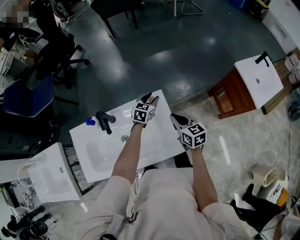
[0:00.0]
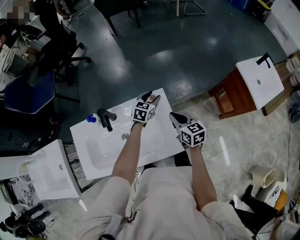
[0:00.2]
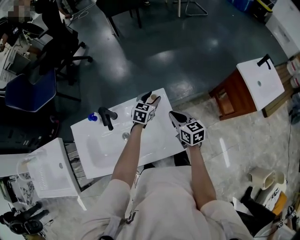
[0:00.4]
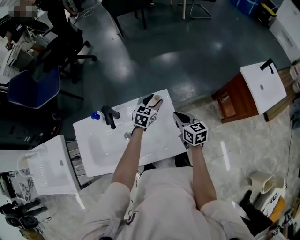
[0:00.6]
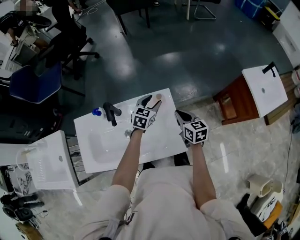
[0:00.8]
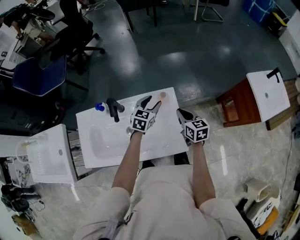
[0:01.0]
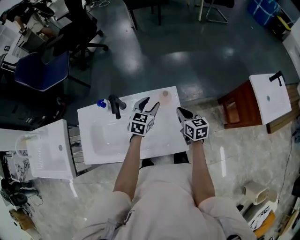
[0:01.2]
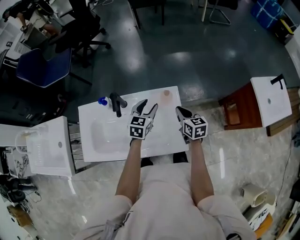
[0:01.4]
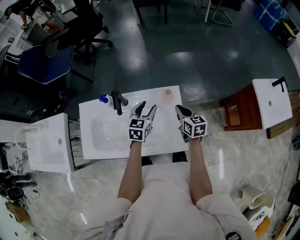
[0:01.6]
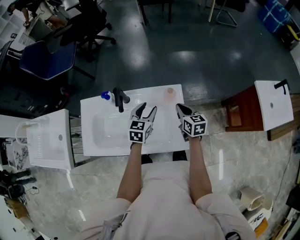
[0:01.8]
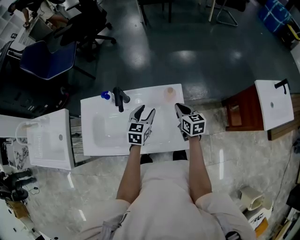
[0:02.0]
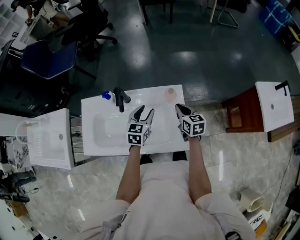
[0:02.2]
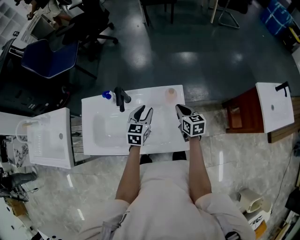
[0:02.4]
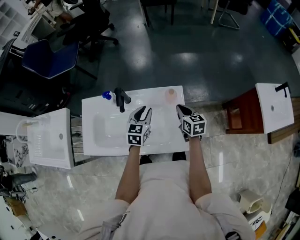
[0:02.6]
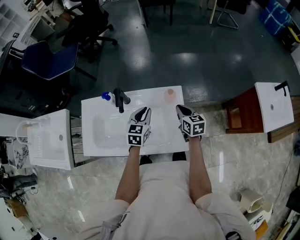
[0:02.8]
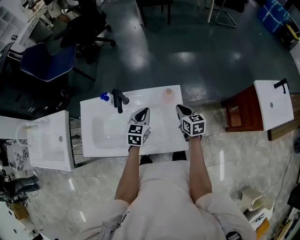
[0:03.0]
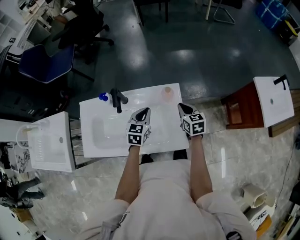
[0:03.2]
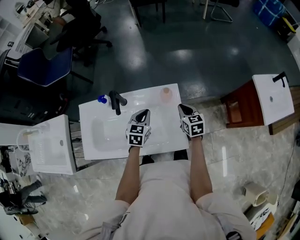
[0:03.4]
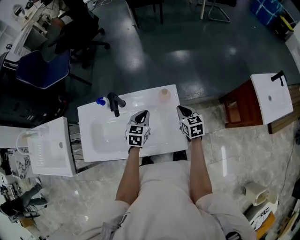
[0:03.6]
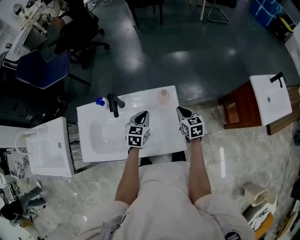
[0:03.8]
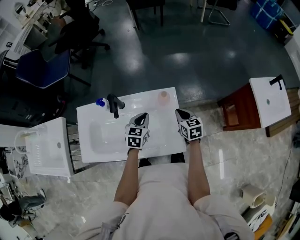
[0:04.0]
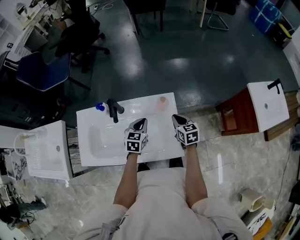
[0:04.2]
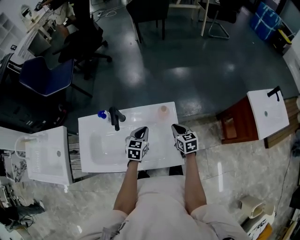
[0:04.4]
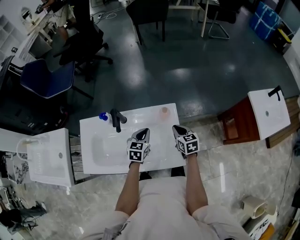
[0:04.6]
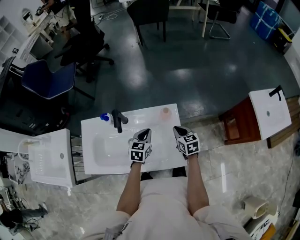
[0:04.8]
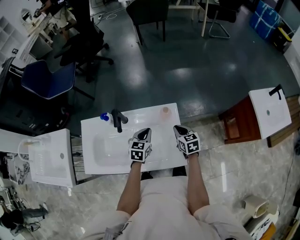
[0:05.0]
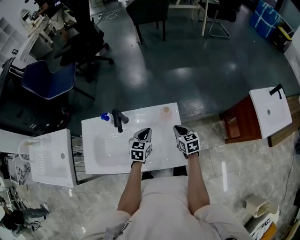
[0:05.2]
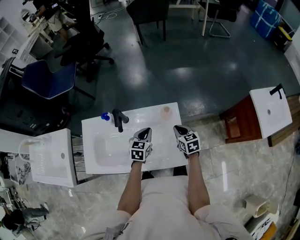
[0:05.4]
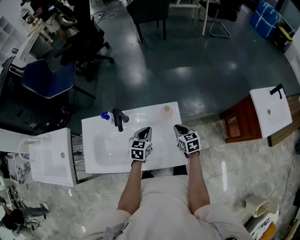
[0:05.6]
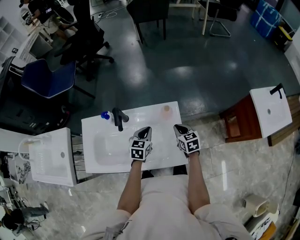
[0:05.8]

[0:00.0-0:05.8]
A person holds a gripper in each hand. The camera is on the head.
0:00.0 to 0:01.4: The left gripper is displaced to the left, backward and upward by about 15 cm.
0:01.4 to 0:02.8: The left gripper changes place by about 5 cm, and closes its fingers.
0:02.8 to 0:04.4: There are only small adjustments of the grippers.
0:04.4 to 0:05.8: Both grippers stay about where they are.

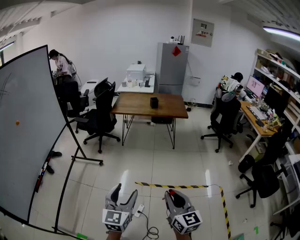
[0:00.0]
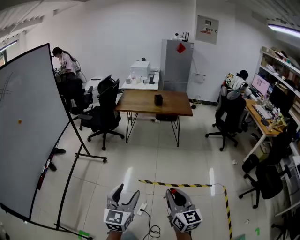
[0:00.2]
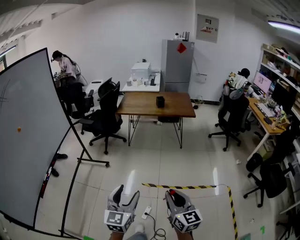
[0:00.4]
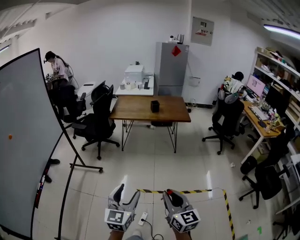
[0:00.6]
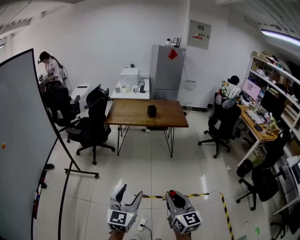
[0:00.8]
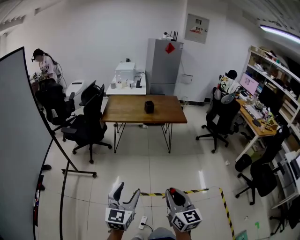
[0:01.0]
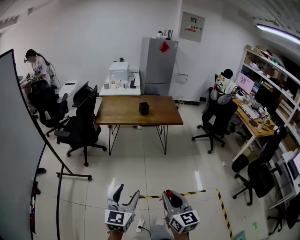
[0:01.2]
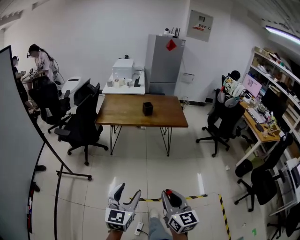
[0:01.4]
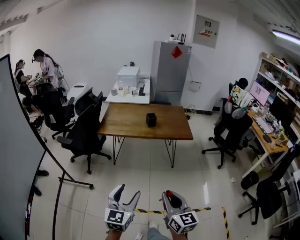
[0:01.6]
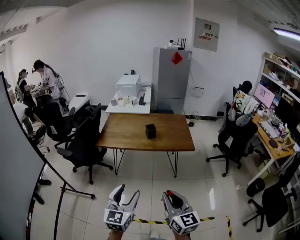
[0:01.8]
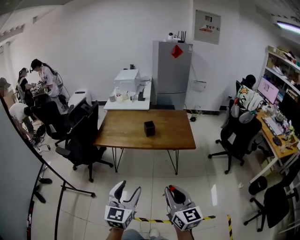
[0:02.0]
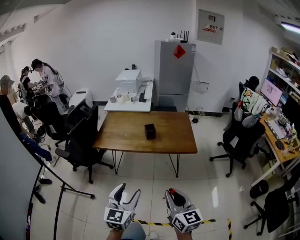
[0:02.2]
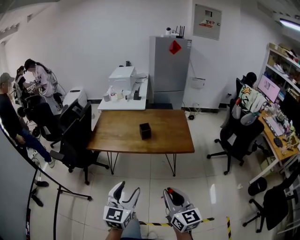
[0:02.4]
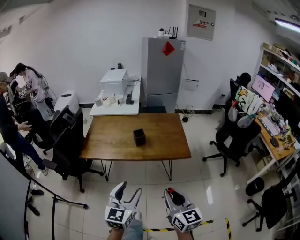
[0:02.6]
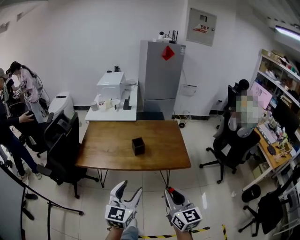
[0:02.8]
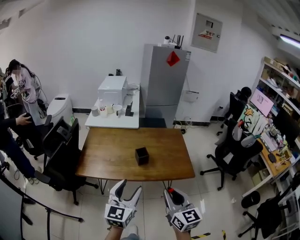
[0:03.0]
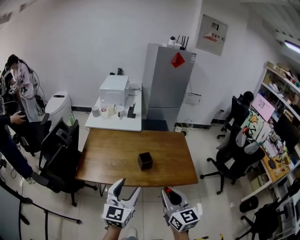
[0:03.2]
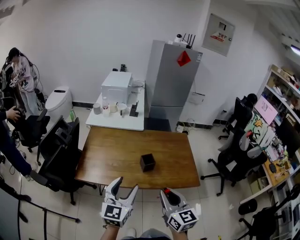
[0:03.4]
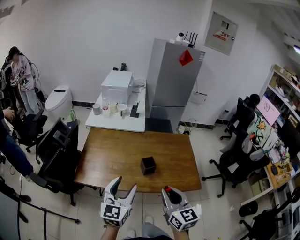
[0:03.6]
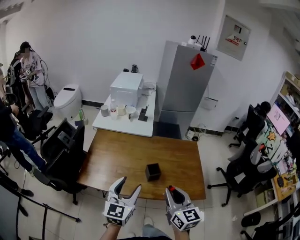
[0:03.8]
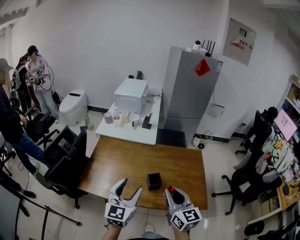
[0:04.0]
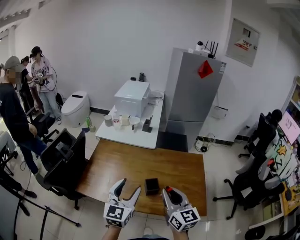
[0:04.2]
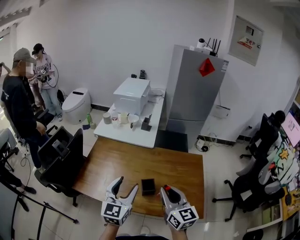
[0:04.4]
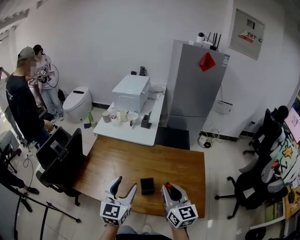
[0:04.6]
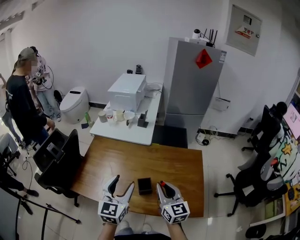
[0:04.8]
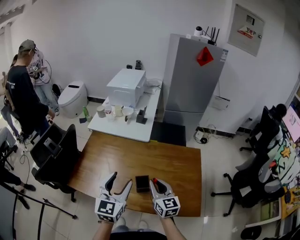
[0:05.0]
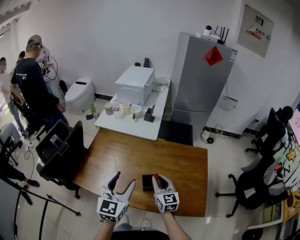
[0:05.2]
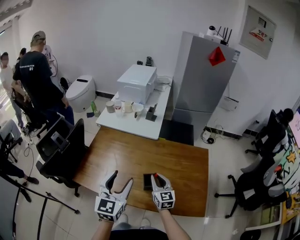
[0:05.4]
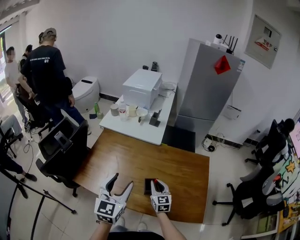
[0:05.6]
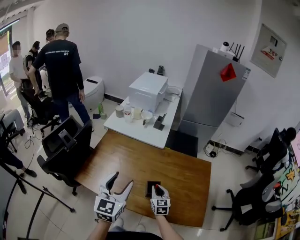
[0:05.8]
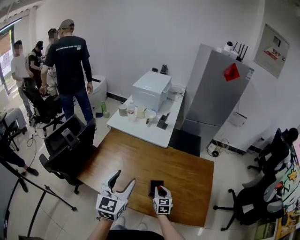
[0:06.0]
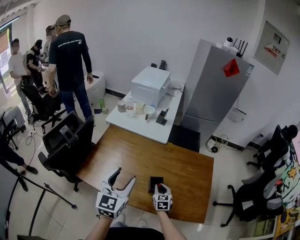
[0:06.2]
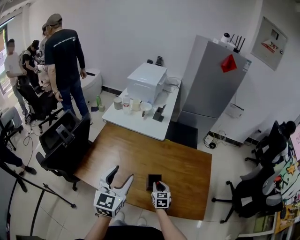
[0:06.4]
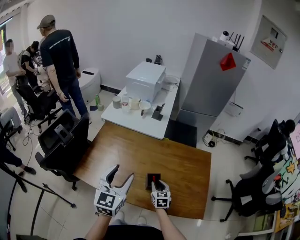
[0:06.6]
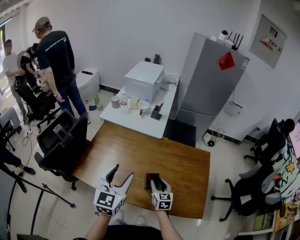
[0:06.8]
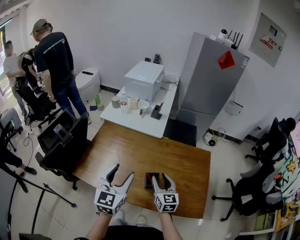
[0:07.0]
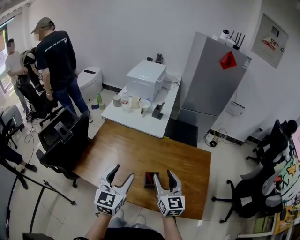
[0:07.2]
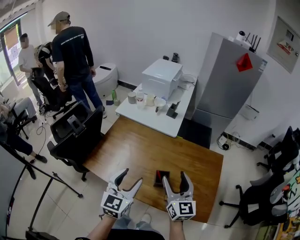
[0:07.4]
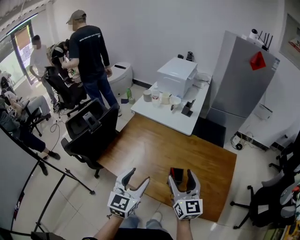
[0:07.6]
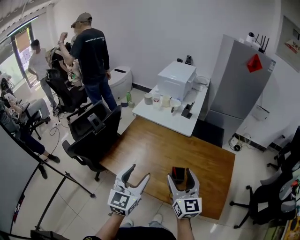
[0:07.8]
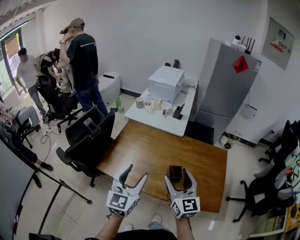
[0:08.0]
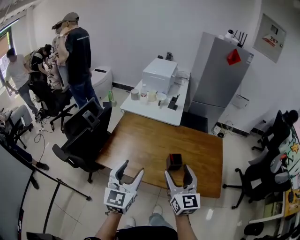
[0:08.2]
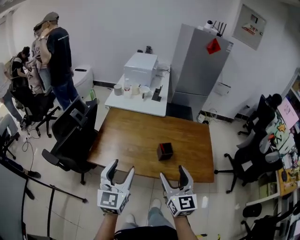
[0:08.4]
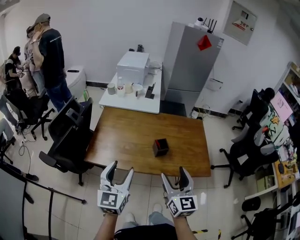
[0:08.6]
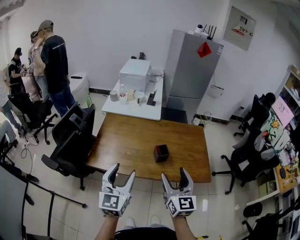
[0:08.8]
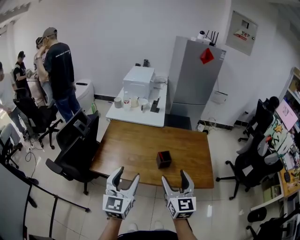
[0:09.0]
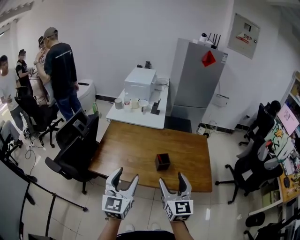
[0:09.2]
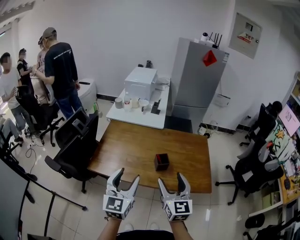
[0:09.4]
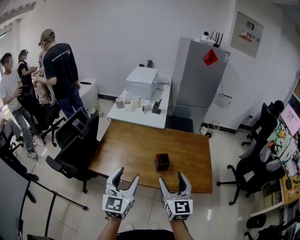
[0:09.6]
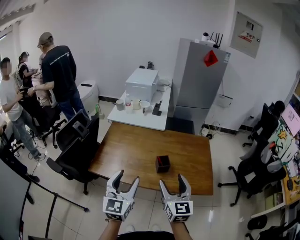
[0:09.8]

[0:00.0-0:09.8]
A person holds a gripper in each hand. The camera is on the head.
0:00.0 to 0:01.4: The grippers both shift forward by about 30 cm.
0:01.4 to 0:02.8: The pair of grippers is taken forward, approximately 50 cm.
0:02.8 to 0:04.2: The grippers both shift forward by some 35 cm.
0:04.2 to 0:05.6: The right gripper heads downward and forward, covering about 25 cm.
0:05.6 to 0:07.0: The right gripper moves upward, approximately 5 cm, and opens up.
0:07.0 to 0:08.4: The right gripper travels backward, upward and to the left by some 25 cm, and opens its fingers, while the left gripper shifts roughly 20 cm backward and to the left.
0:08.4 to 0:09.8: Both grippers travel together to the right, approximately 5 cm.

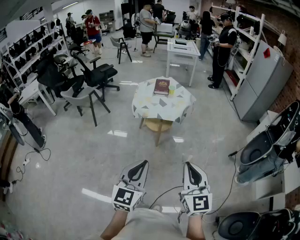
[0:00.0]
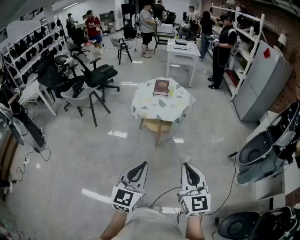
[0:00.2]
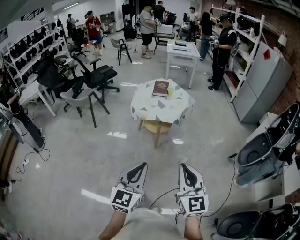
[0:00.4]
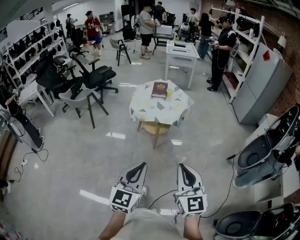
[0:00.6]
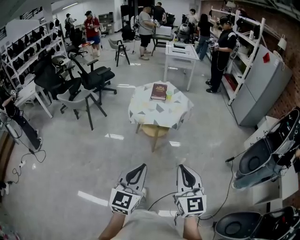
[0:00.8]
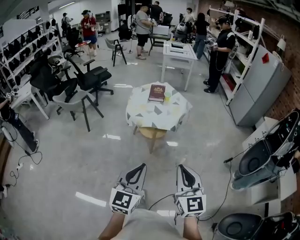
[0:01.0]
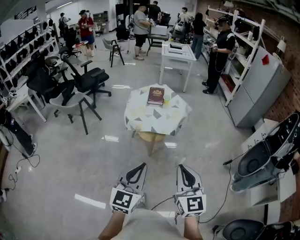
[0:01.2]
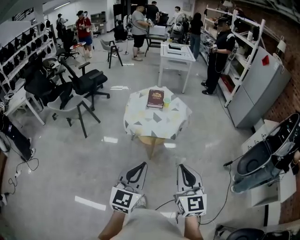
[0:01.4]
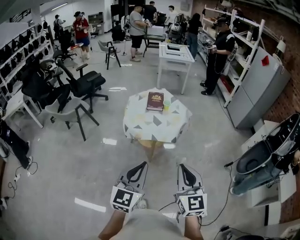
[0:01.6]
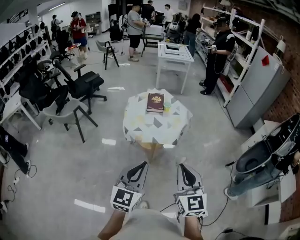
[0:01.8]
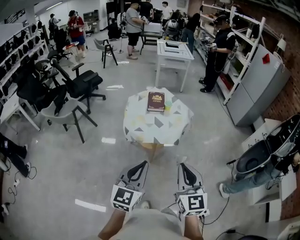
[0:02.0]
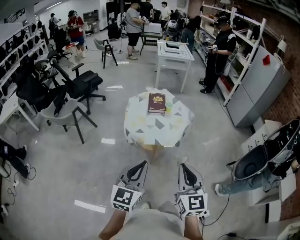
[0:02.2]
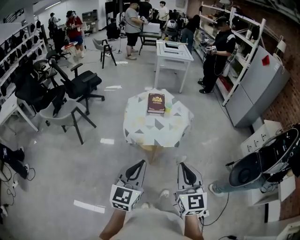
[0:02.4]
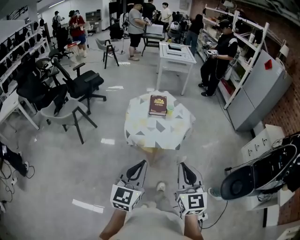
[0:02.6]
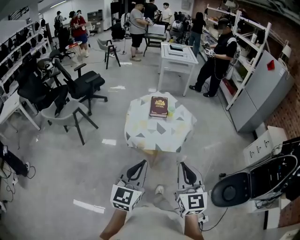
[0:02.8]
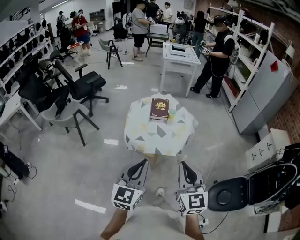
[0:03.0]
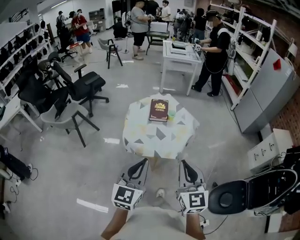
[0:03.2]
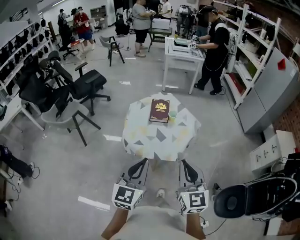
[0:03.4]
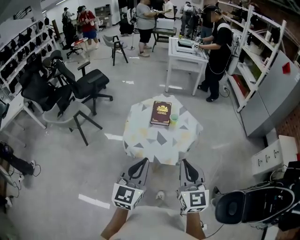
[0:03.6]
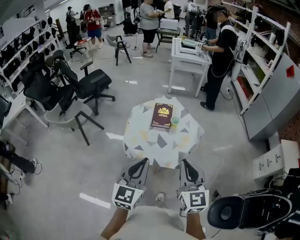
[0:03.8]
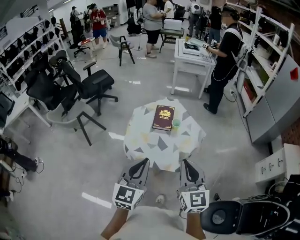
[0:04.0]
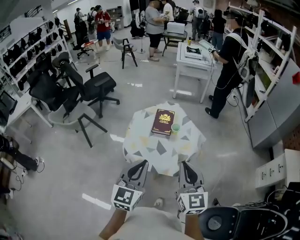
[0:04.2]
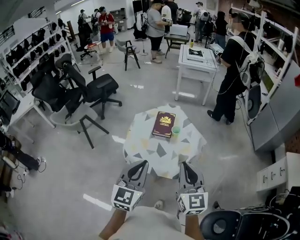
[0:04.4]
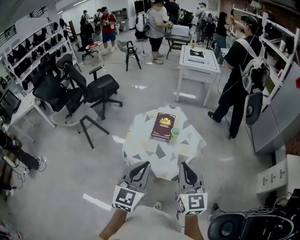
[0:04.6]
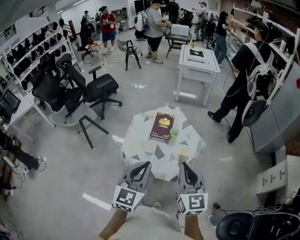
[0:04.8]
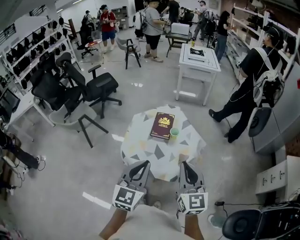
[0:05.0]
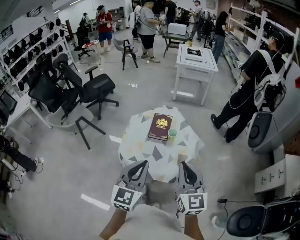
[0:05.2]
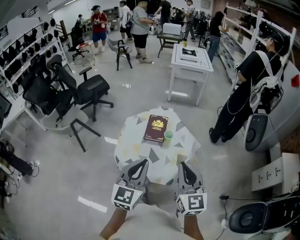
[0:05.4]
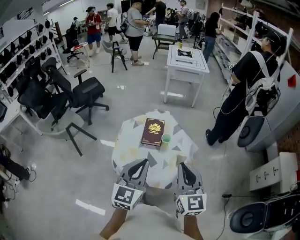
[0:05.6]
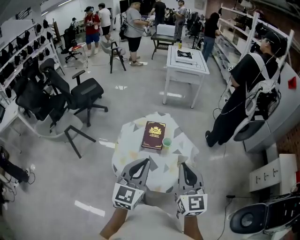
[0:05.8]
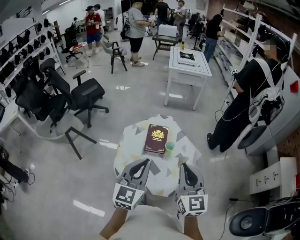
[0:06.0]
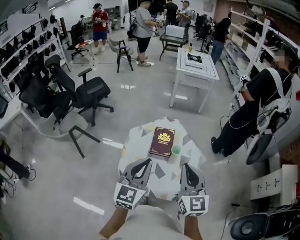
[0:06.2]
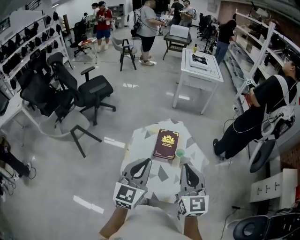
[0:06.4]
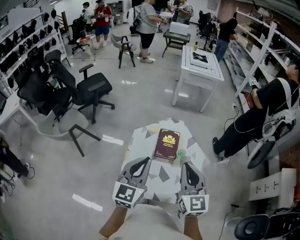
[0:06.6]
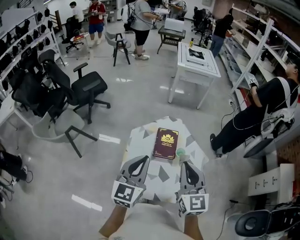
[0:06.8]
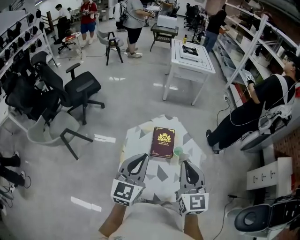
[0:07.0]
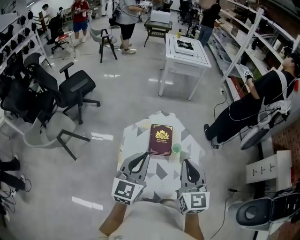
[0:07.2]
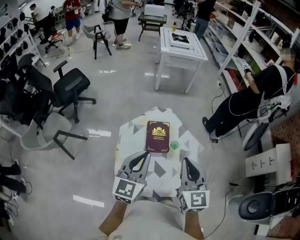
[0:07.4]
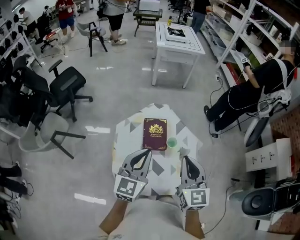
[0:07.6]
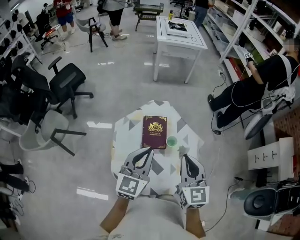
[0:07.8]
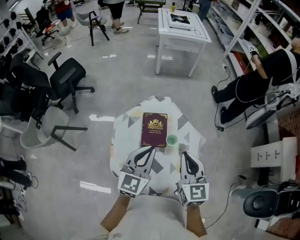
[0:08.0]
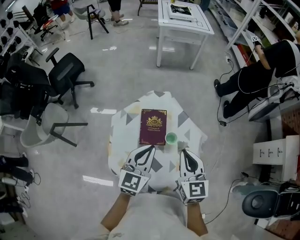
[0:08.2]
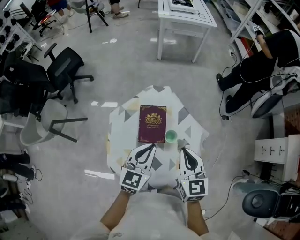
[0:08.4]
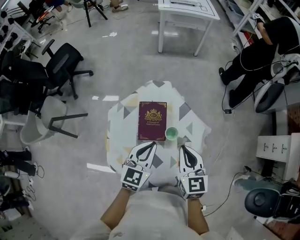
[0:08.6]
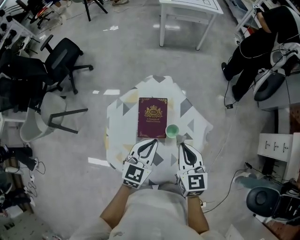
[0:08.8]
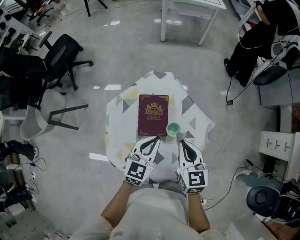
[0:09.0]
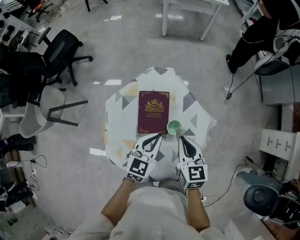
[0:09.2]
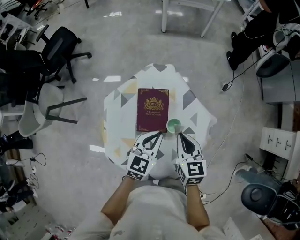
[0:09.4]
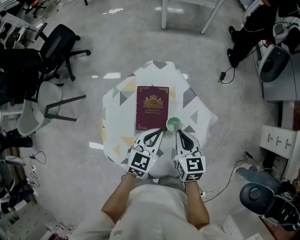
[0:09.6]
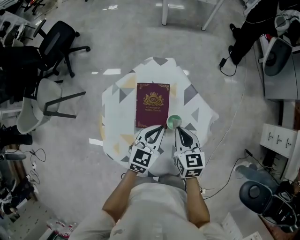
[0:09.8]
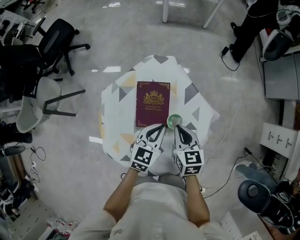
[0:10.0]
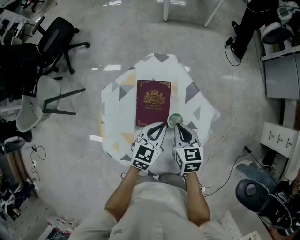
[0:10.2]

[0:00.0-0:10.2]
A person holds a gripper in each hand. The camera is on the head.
0:00.0 to 0:01.4: The two grippers go roughly 15 cm forward.
0:01.4 to 0:03.0: The two grippers go about 15 cm forward.
0:03.0 to 0:04.4: The right gripper travels forward by roughly 20 cm; the left gripper shifts about 20 cm forward and to the right.
0:04.4 to 0:05.8: Both grippers travel together forward, about 10 cm.
0:05.8 to 0:07.2: Both grippers travel together forward and to the left, approximately 15 cm.
0:07.2 to 0:08.8: The left gripper goes about 25 cm downward, forward and to the right, and swivels about 20 degrees, while the right gripper travels downward and forward by roughly 25 cm, and turns by approximately 20 degrees.
0:08.8 to 0:10.2: Both grippers travel together downward, roughly 10 cm.